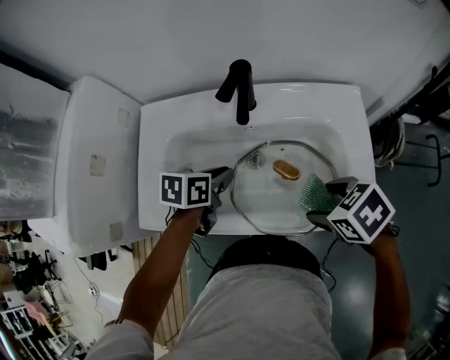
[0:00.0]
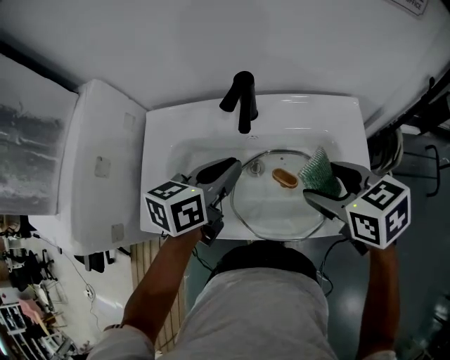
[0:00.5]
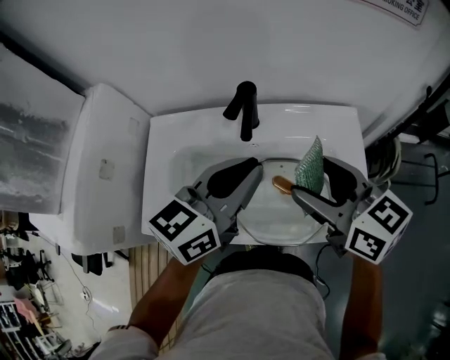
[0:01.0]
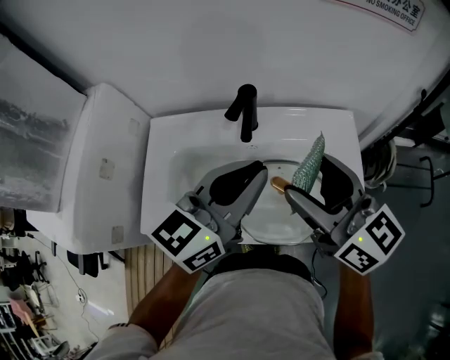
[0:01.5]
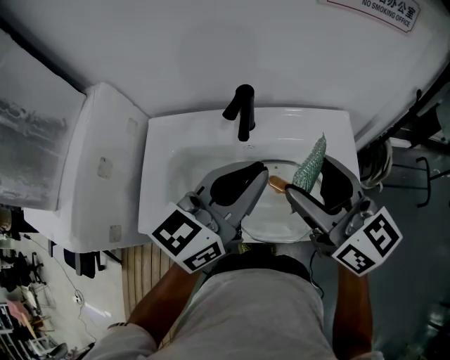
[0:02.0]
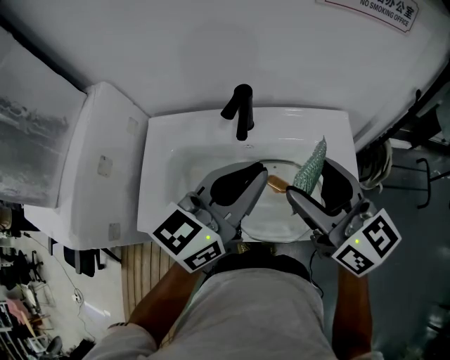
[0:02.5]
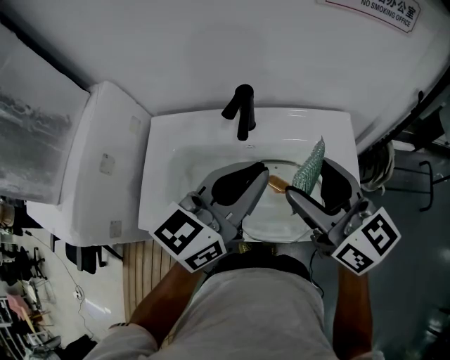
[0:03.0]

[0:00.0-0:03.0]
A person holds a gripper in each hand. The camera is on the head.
0:00.0 to 0:01.5: The two grippers go roughly 25 cm upward. The left gripper points its fingers about 40 degrees further upward; the right gripper tips its fingers upward by roughly 60 degrees.
0:01.5 to 0:03.0: The grippers move only a little.

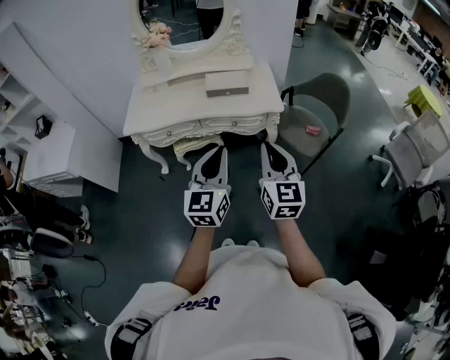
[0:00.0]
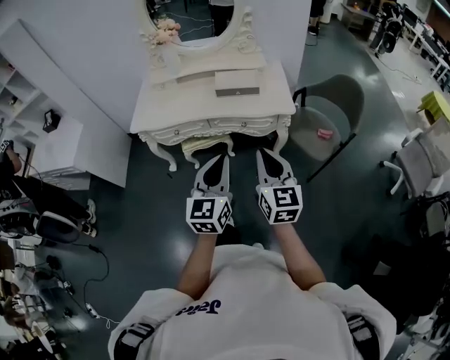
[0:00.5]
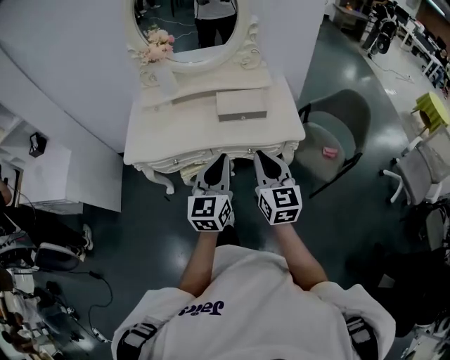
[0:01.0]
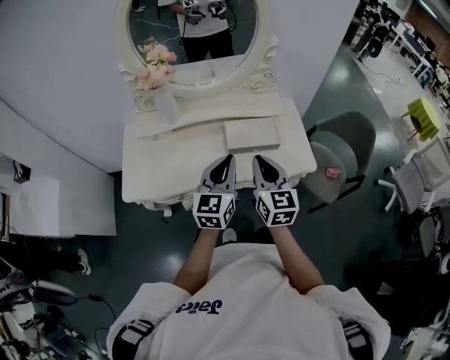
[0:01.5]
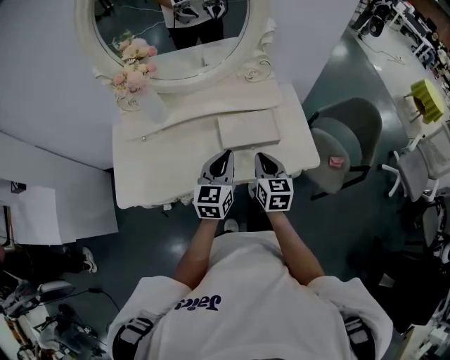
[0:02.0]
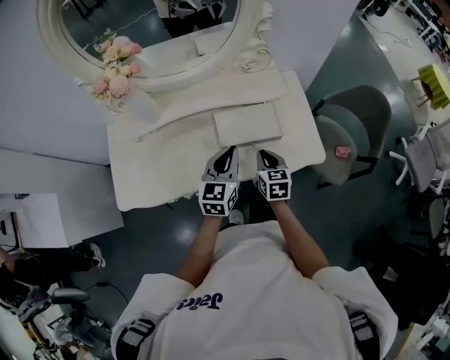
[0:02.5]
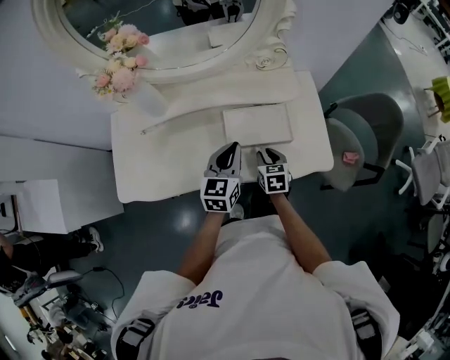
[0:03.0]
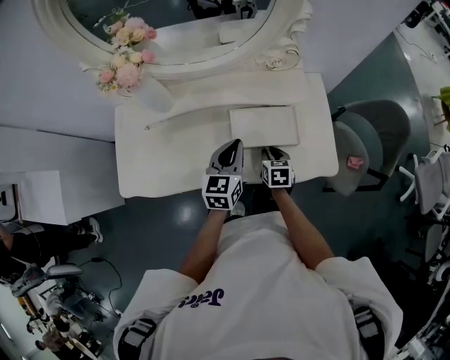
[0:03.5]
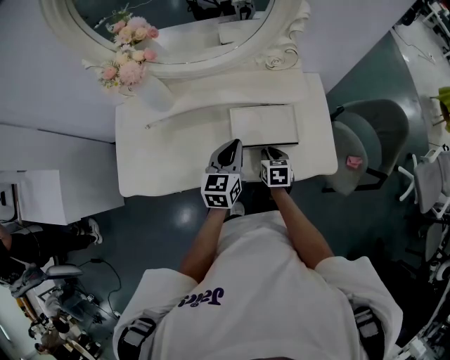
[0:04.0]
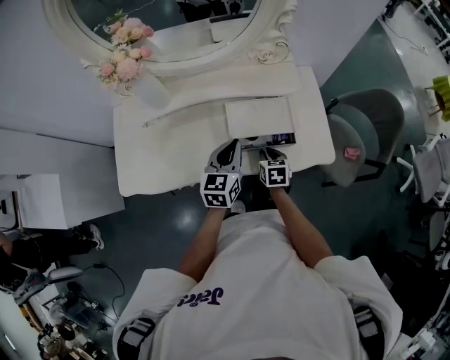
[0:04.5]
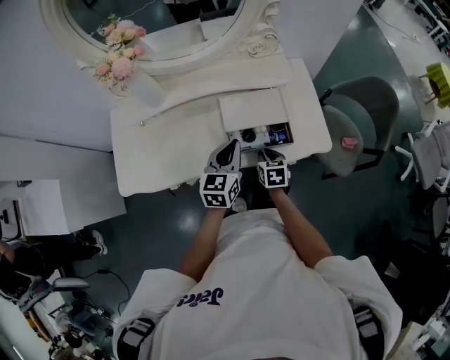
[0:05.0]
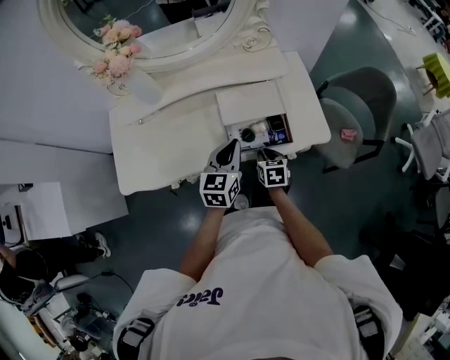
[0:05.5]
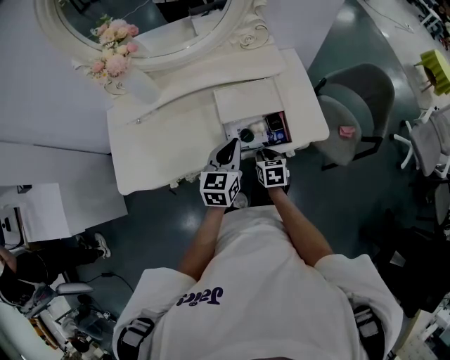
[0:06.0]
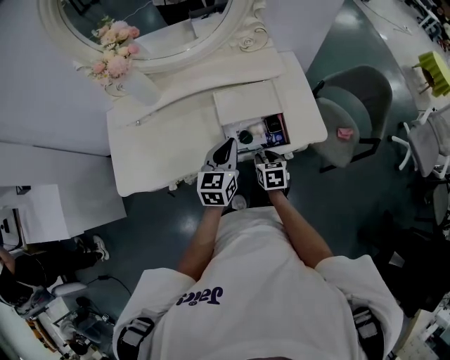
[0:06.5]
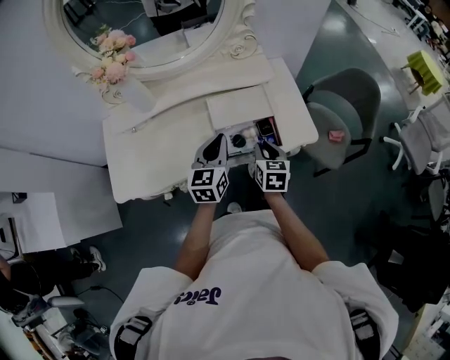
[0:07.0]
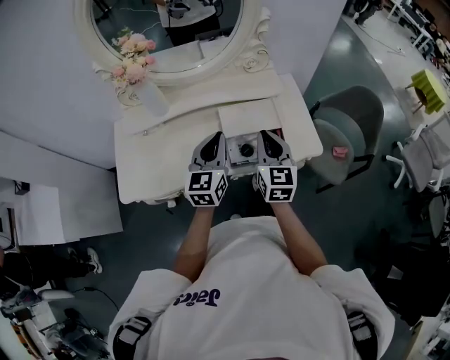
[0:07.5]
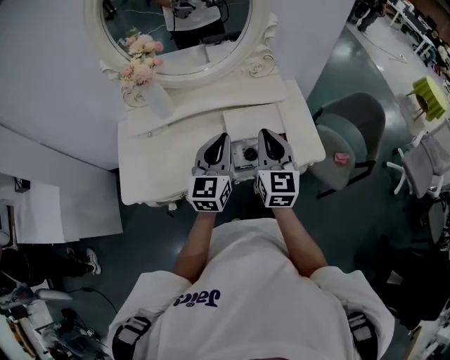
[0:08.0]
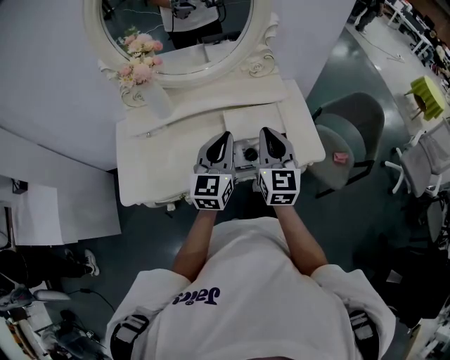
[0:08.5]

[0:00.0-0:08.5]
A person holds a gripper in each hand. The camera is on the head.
0:00.0 to 0:02.0: The two grippers travel together, forward, roughly 50 cm. The right gripper goes some 20 cm downward, and changes its angle by about 20 degrees.
0:02.0 to 0:04.0: The left gripper heads forward and downward, covering about 10 cm; the right gripper is displaced downward by about 20 cm, and changes its angle by approximately 30 degrees.
0:04.0 to 0:06.5: The two grippers go about 10 cm backward.
0:06.5 to 0:08.5: The left gripper travels upward by some 10 cm; the right gripper is displaced upward by some 30 cm, tilts its fingers approximately 40 degrees upward, and closes.

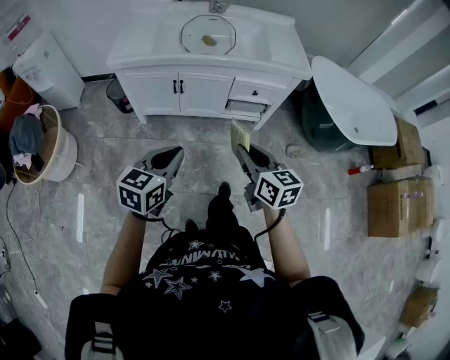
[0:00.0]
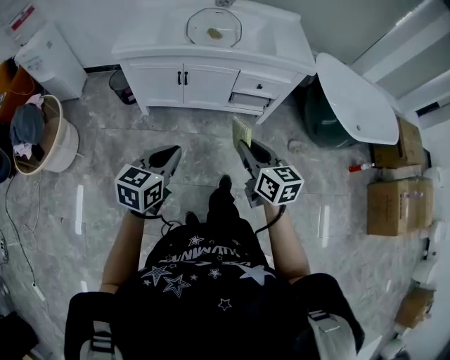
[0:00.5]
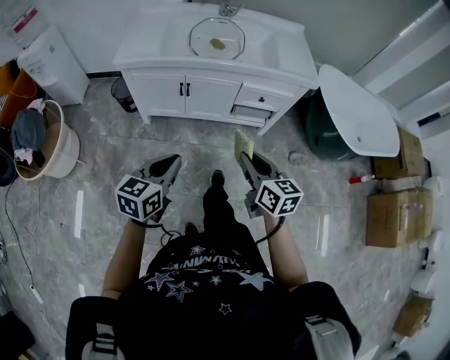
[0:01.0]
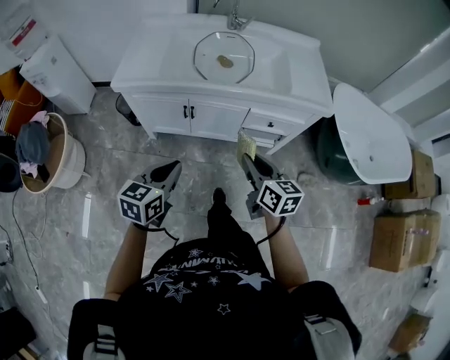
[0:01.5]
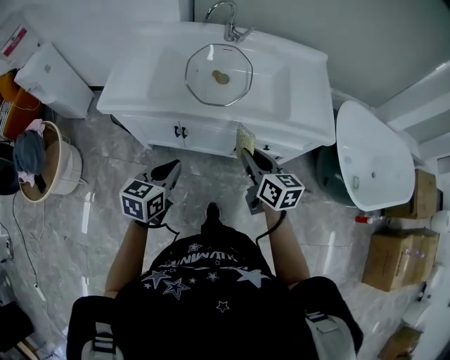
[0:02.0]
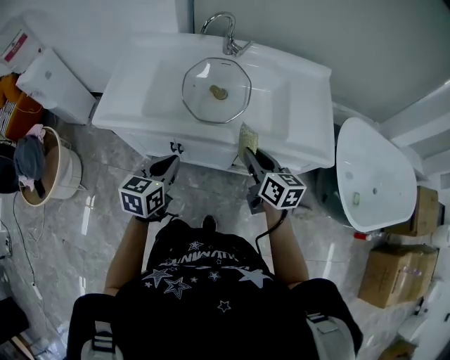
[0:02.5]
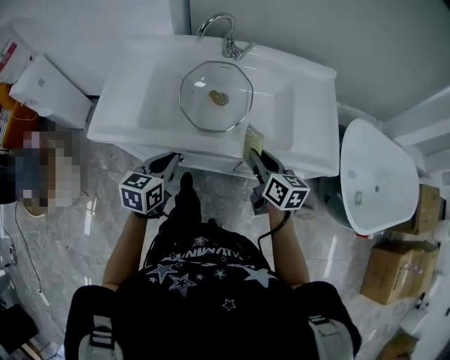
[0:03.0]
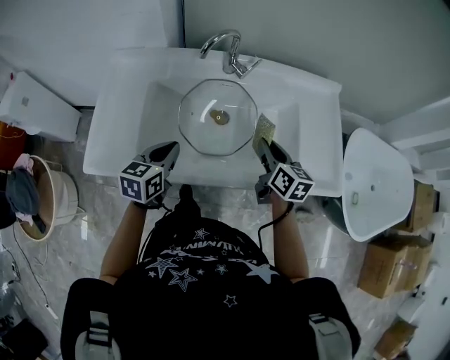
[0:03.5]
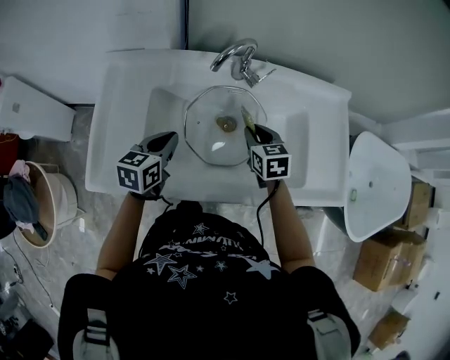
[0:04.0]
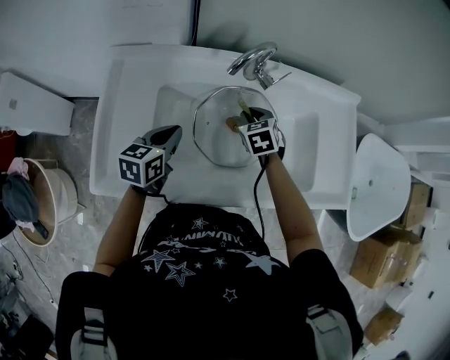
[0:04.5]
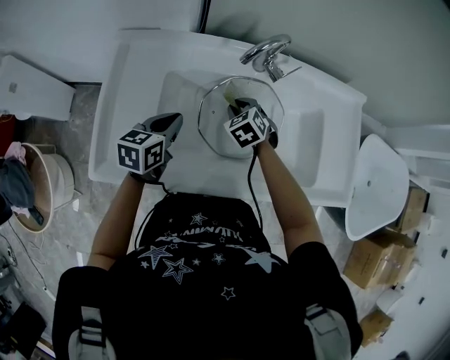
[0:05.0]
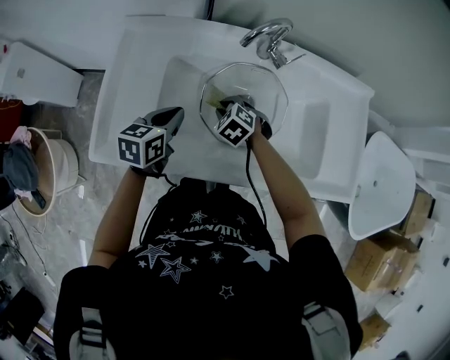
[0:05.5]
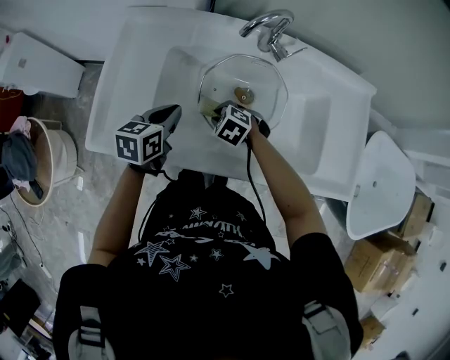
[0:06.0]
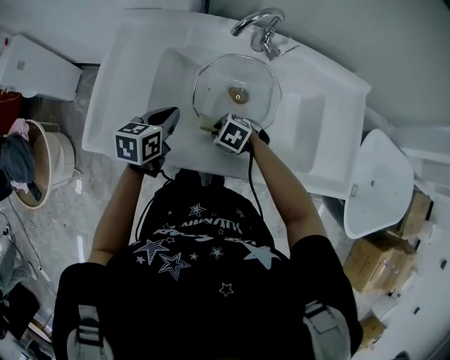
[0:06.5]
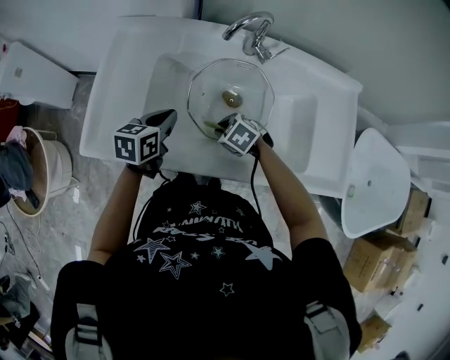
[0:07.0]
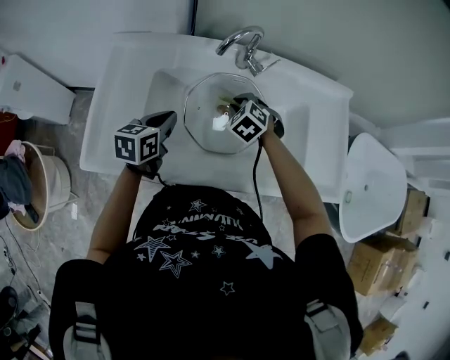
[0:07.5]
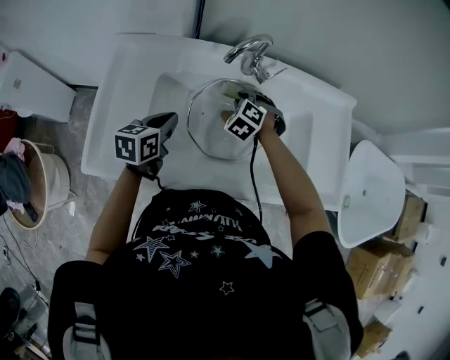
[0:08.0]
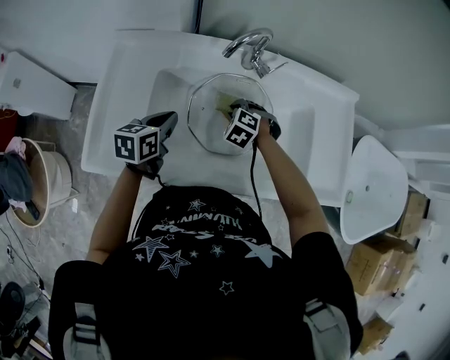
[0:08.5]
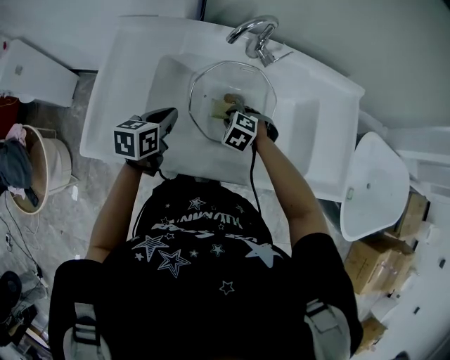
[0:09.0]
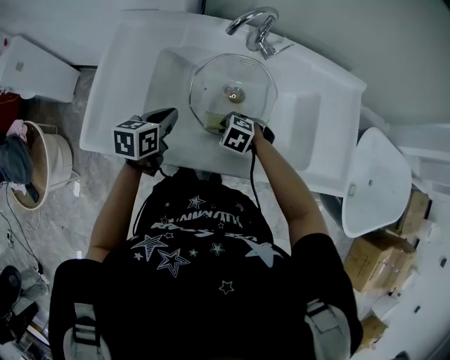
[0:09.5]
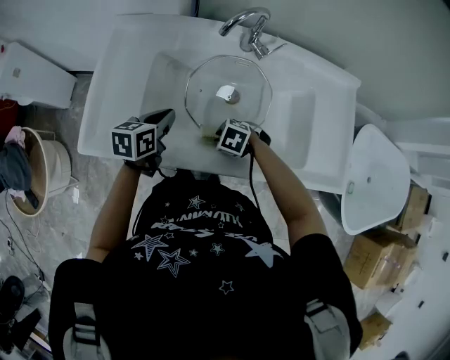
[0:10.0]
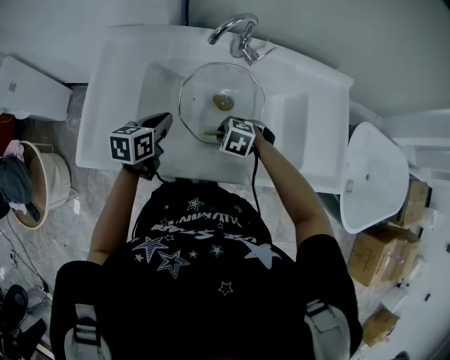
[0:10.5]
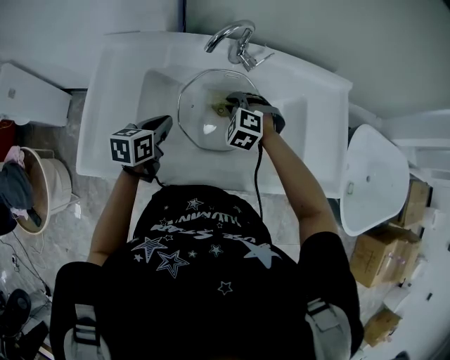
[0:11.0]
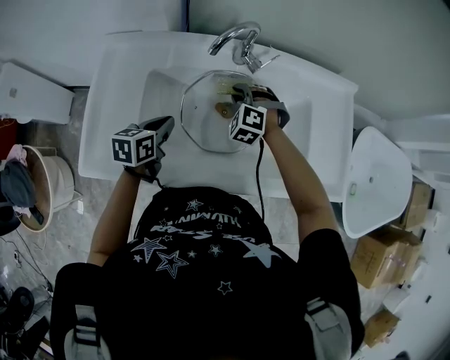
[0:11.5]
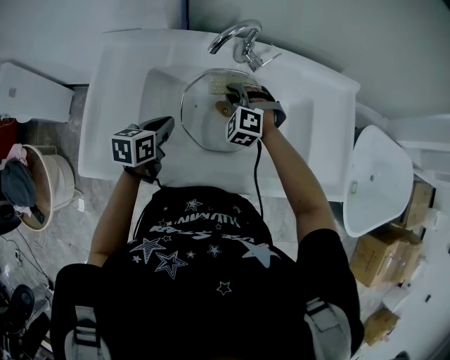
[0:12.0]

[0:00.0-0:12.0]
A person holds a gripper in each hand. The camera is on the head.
0:00.0 to 0:02.0: Both grippers move forward, roughly 30 cm.
0:02.0 to 0:04.0: The grippers both shift forward by approximately 40 cm. The right gripper rotates approximately 30 degrees.
0:04.0 to 0:06.0: The right gripper ends up roughly 20 cm from where it was, and turns by approximately 60 degrees.
0:06.0 to 0:08.0: The right gripper ends up about 20 cm from where it was, and swivels approximately 30 degrees.
0:08.0 to 0:10.0: The left gripper ends up approximately 5 cm from where it was; the right gripper shifts by some 25 cm, and rotates roughly 40 degrees.
0:10.0 to 0:12.0: The right gripper shifts by approximately 20 cm, and turns by some 50 degrees.

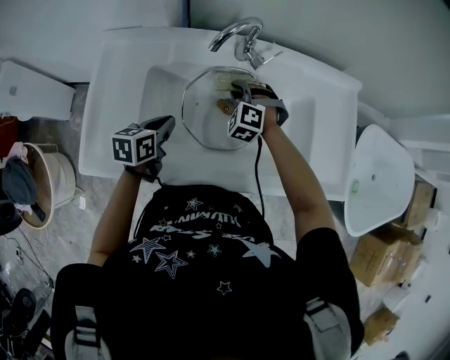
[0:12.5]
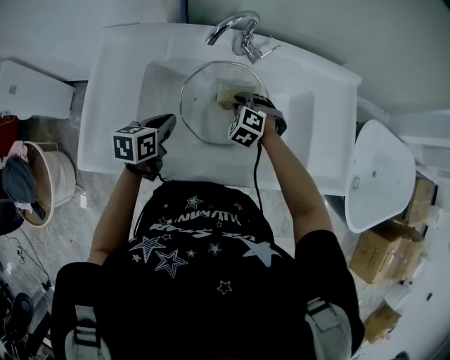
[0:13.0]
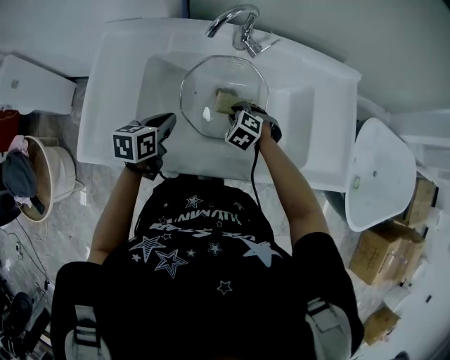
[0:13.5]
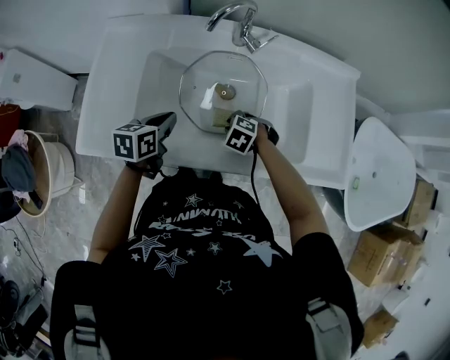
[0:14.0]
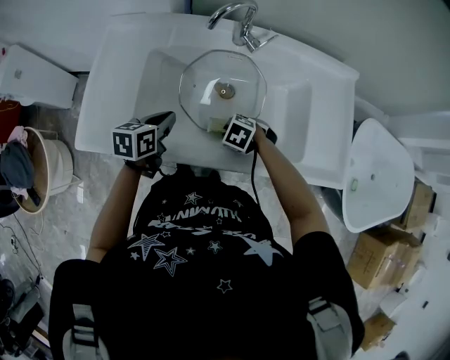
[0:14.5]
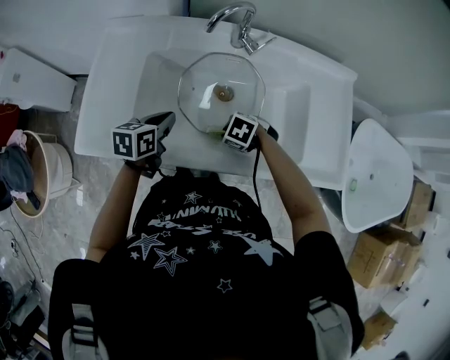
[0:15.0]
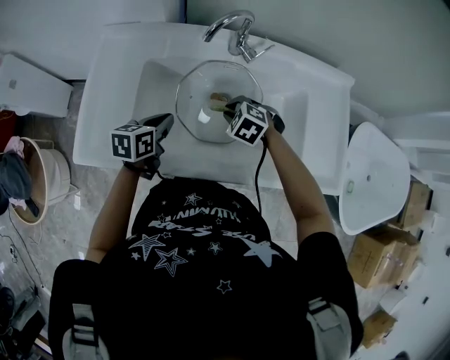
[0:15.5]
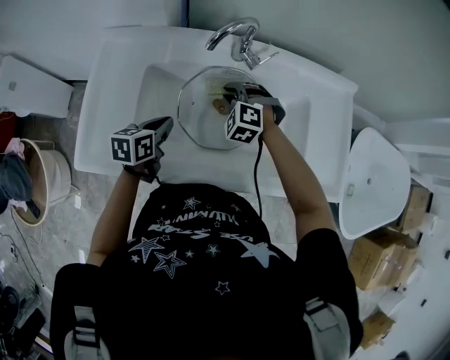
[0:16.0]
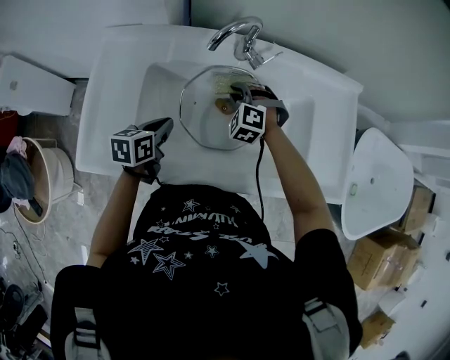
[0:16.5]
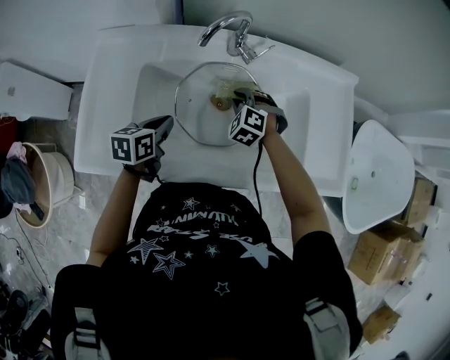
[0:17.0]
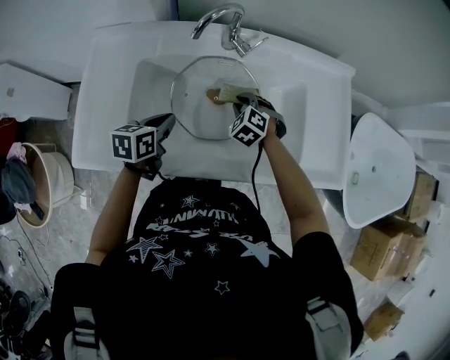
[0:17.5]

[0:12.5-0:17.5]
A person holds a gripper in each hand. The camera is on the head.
0:12.5 to 0:15.0: The left gripper ends up approximately 5 cm from where it was, while the right gripper shifts by some 20 cm, and swivels approximately 50 degrees.
0:15.0 to 0:17.5: The right gripper moves roughly 15 cm, and turns by approximately 40 degrees.
